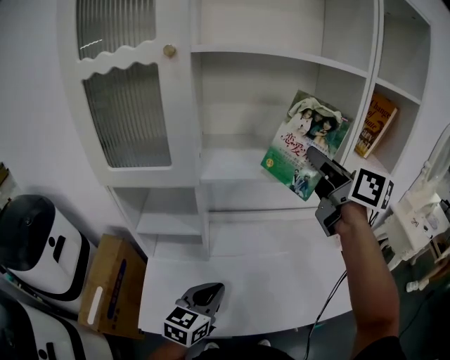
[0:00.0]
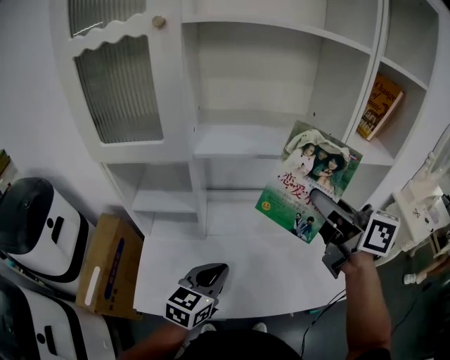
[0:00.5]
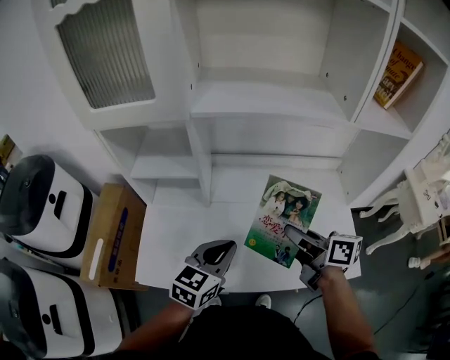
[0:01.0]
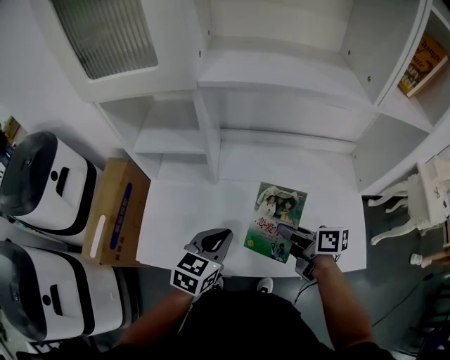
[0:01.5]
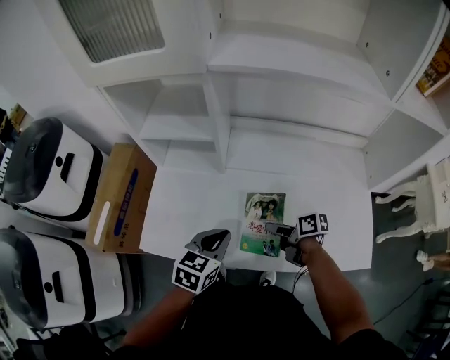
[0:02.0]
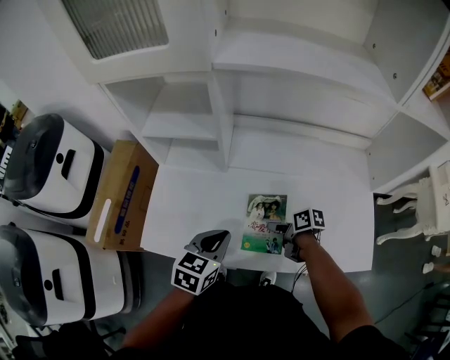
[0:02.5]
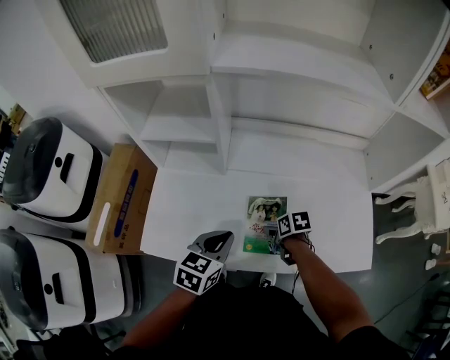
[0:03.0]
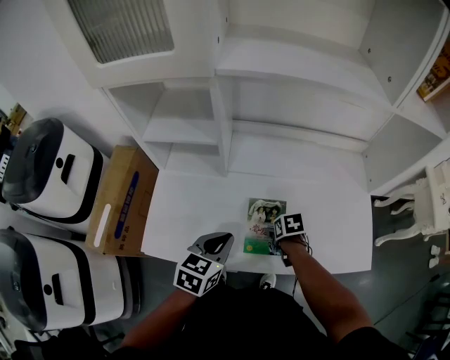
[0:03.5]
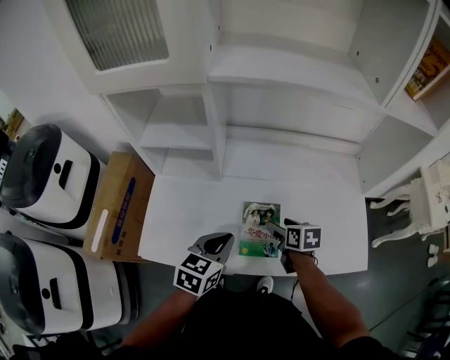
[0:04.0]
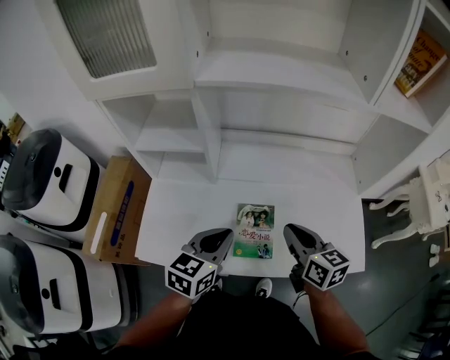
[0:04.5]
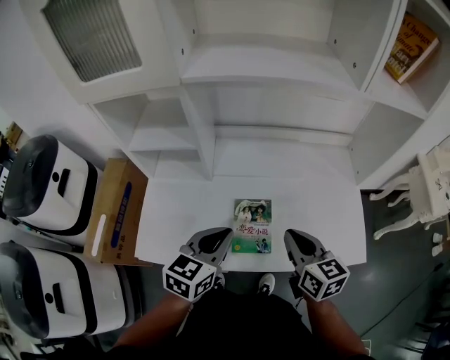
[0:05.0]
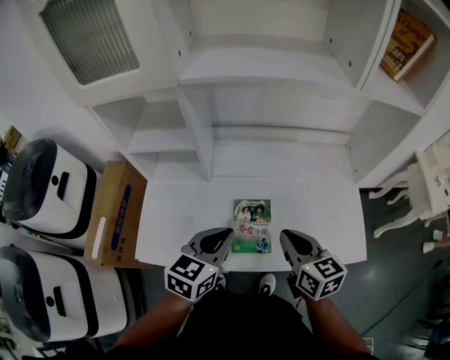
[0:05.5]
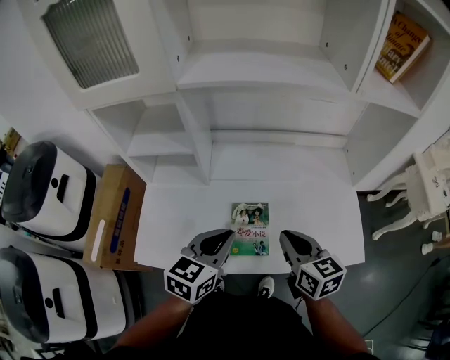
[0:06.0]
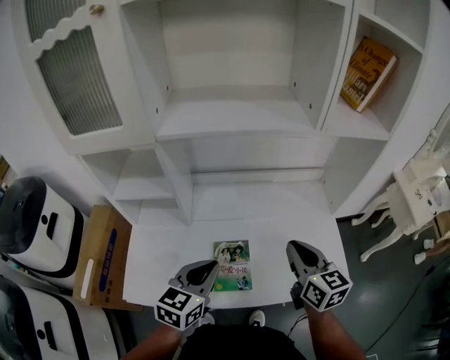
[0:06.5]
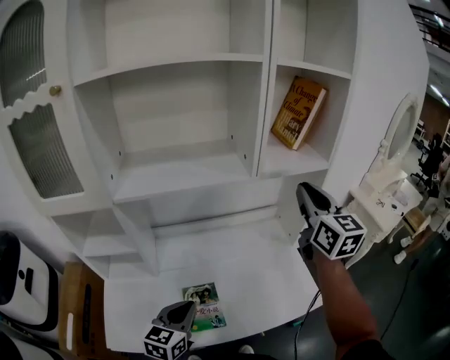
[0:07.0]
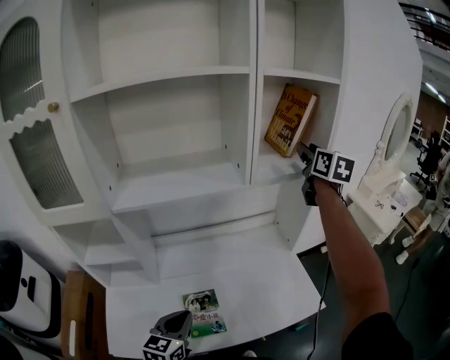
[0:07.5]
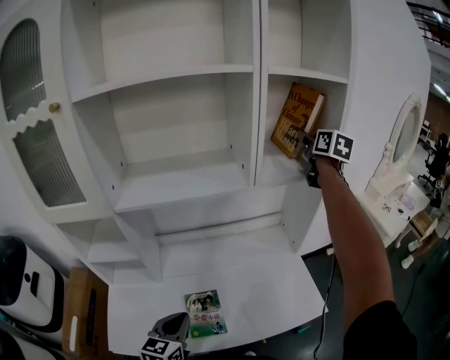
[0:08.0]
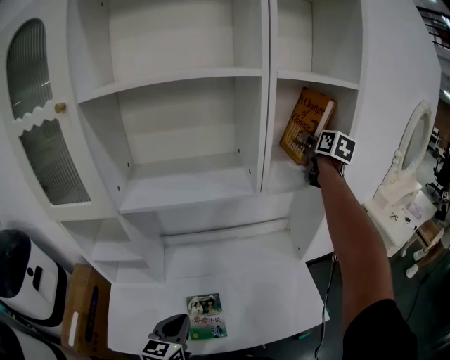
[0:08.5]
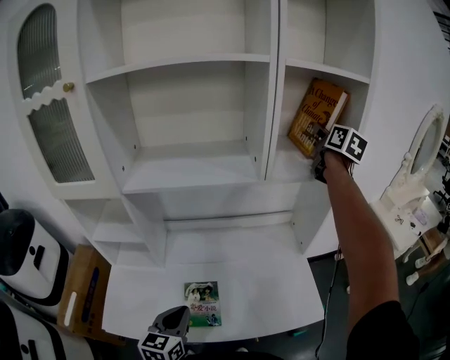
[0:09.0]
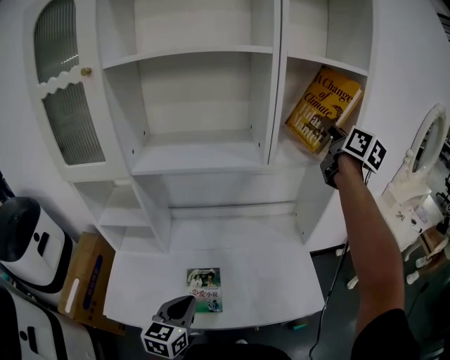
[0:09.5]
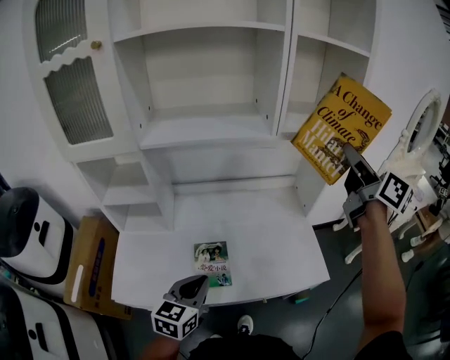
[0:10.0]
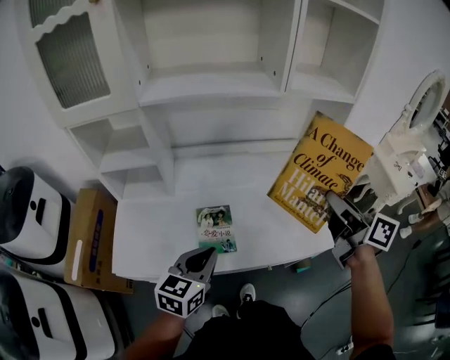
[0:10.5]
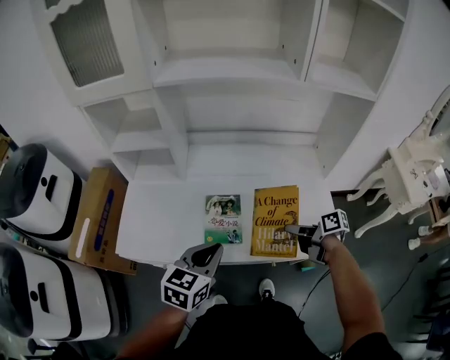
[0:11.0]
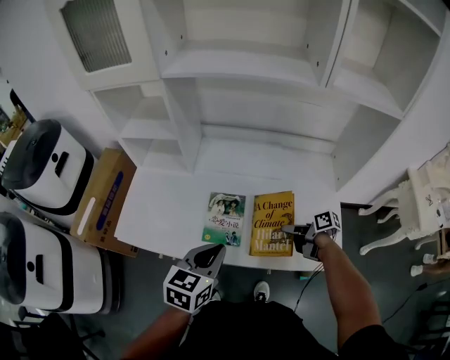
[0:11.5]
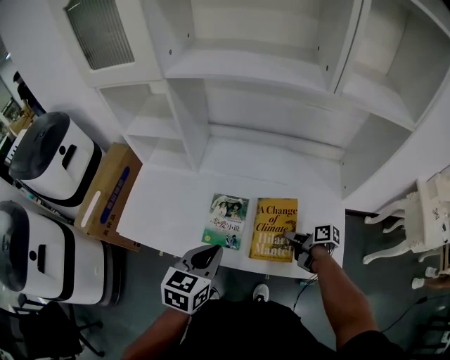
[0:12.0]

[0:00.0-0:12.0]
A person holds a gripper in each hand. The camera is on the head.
0:00.0 to 0:02.0: The left gripper moves downward, approximately 15 cm. Meanwhile the right gripper is displaced downward by some 60 cm, and tilts its fingers about 30 degrees downward.
0:02.0 to 0:04.0: The right gripper moves about 5 cm downward and comes back, turns by about 40 degrees, and opens.
0:04.0 to 0:06.0: The right gripper heads upward and backward, covering about 20 cm, turns by about 30 degrees, and closes. The left gripper goes approximately 5 cm upward.
0:06.0 to 0:08.0: The right gripper shifts roughly 60 cm forward, upward and to the right, turns by roughly 40 degrees, and opens.
0:08.0 to 0:10.0: The right gripper shifts approximately 25 cm backward, and turns by approximately 30 degrees; the left gripper is displaced backward by approximately 5 cm.
0:10.0 to 0:12.0: The left gripper moves downward, some 5 cm, while the right gripper heads downward, covering some 60 cm, and angles its fingers downward, by some 40 degrees.

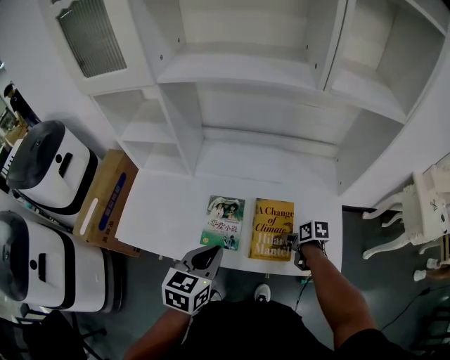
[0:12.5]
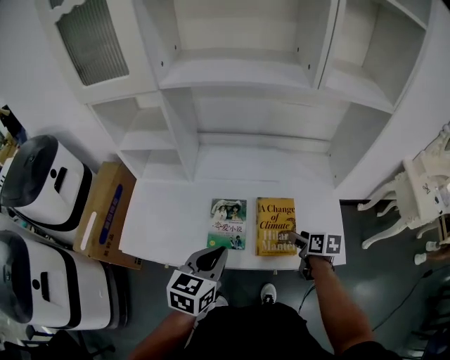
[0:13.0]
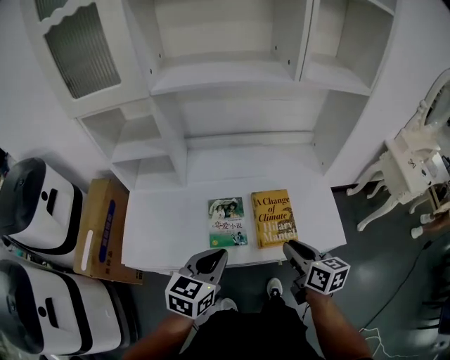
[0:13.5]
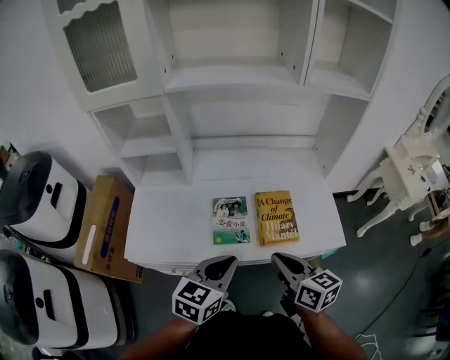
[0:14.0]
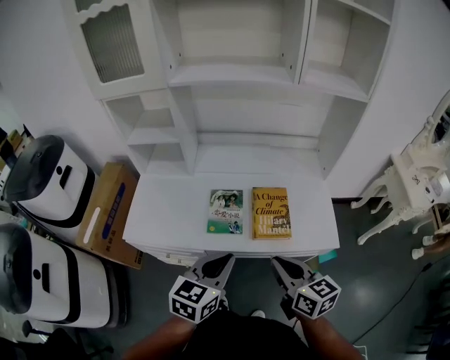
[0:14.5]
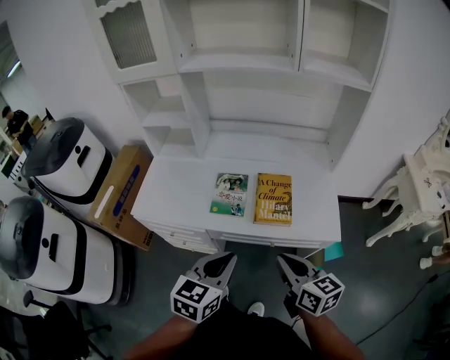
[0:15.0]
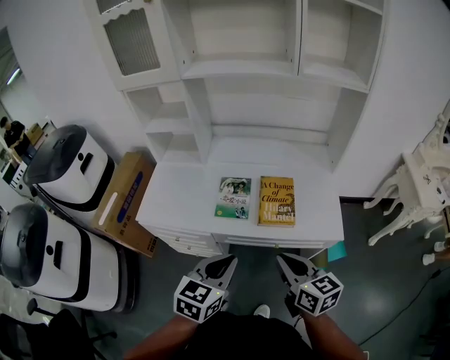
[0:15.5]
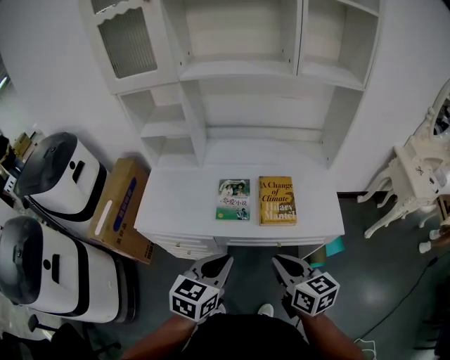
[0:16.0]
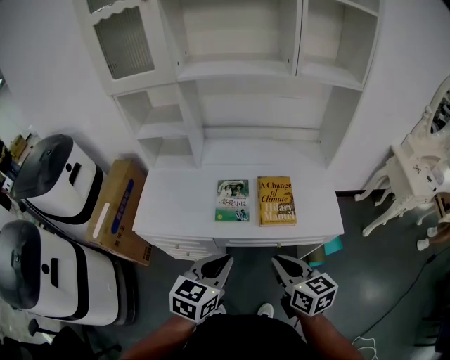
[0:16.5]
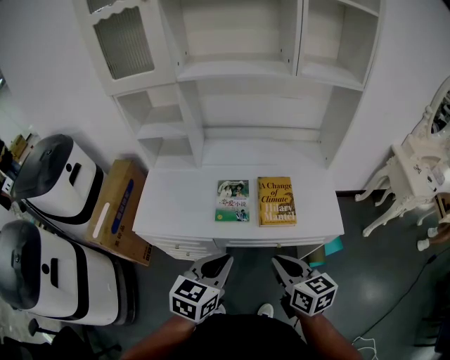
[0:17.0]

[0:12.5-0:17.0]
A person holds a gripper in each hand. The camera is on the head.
0:12.5 to 0:14.5: The left gripper heads backward, covering about 10 cm. The right gripper shifts about 35 cm upward, backward and to the left, tilts its fingers roughly 40 degrees upward, and closes up.
0:14.5 to 0:17.0: The two grippers go some 5 cm backward.

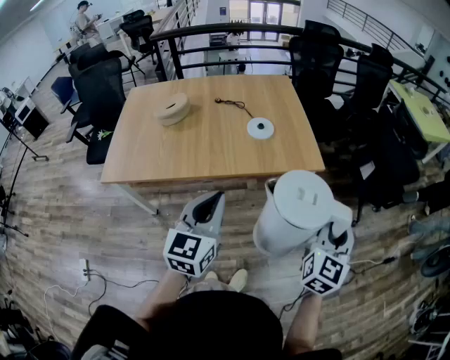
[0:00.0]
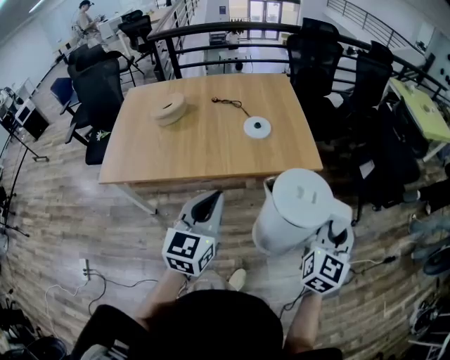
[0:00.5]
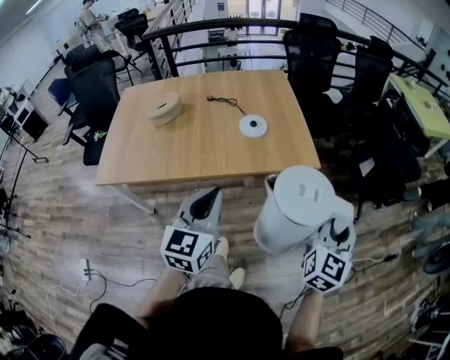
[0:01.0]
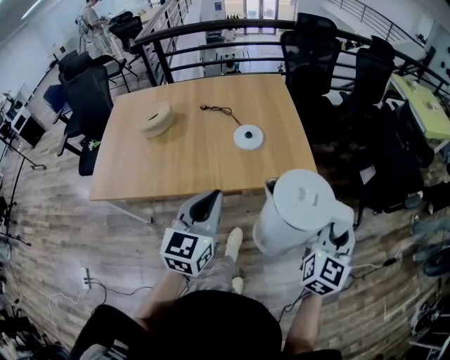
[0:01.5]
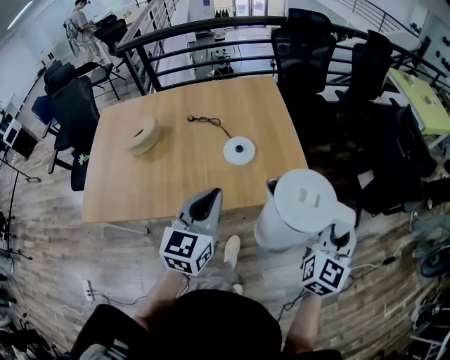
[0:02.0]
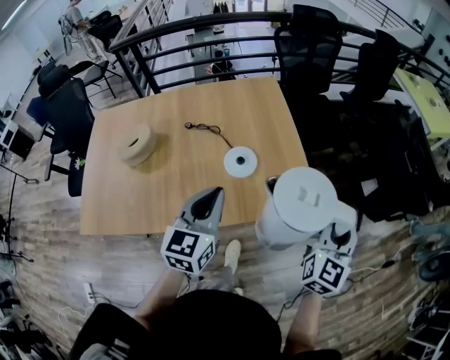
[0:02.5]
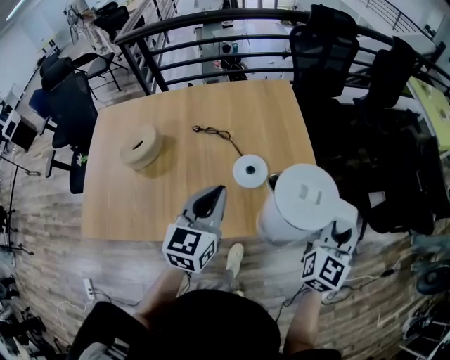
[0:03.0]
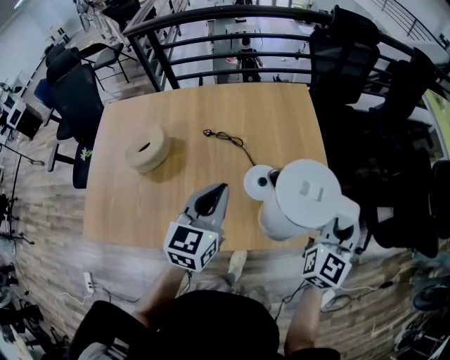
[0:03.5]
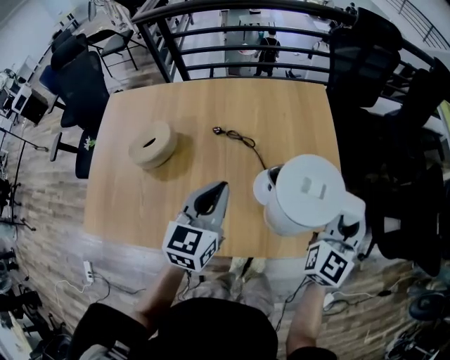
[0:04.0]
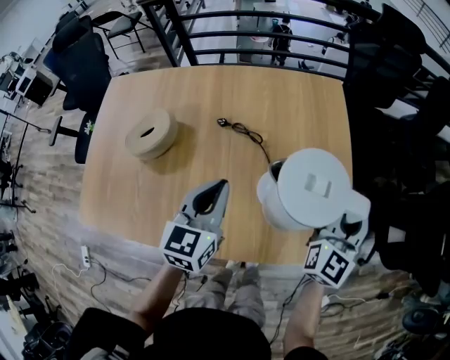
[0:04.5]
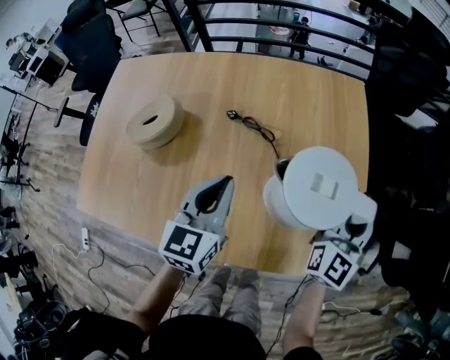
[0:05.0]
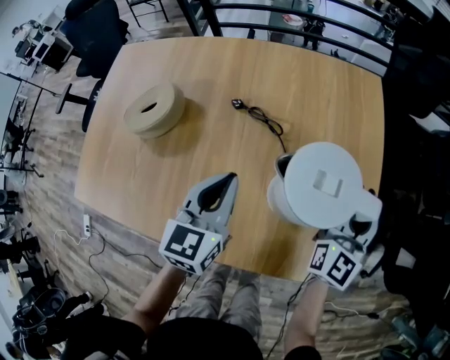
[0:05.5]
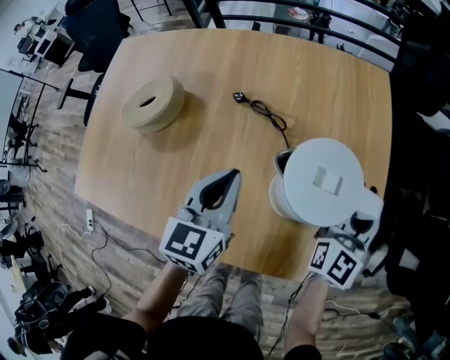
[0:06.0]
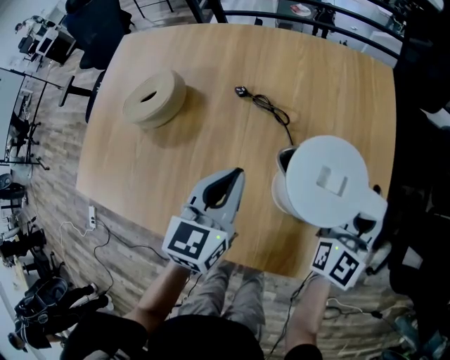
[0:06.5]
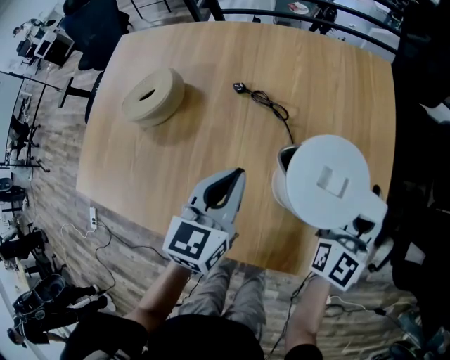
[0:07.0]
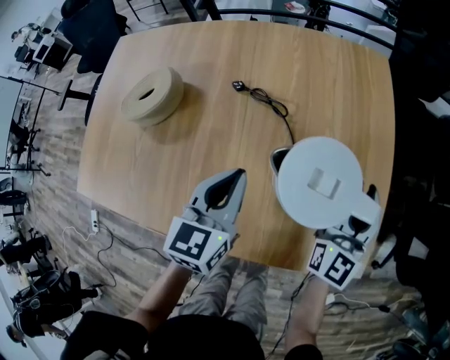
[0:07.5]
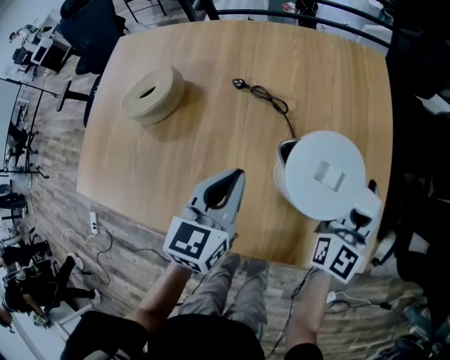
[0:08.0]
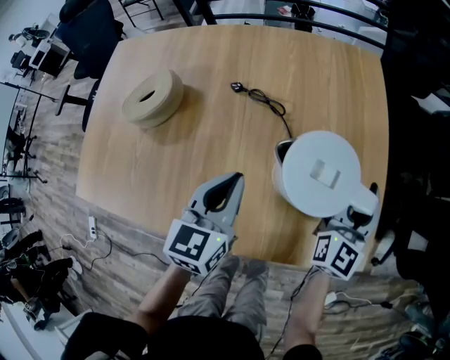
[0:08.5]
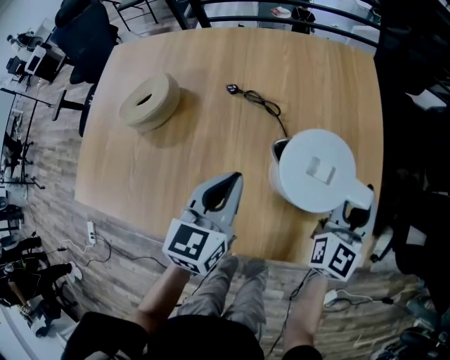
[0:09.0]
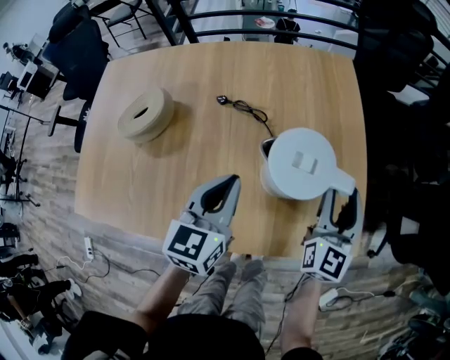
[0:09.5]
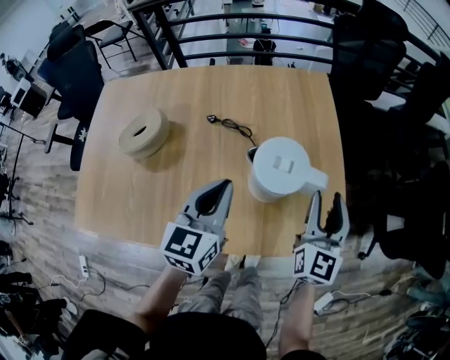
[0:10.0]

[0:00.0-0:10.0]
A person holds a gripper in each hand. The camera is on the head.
0:00.0 to 0:02.0: The grippers both shift forward by roughly 25 cm.
0:02.0 to 0:04.0: Both grippers move forward and to the left, about 30 cm.
0:04.0 to 0:06.0: The right gripper heads downward, forward and to the left, covering roughly 20 cm, while the left gripper travels downward and forward by roughly 15 cm.
0:06.0 to 0:08.0: The right gripper moves approximately 5 cm.
0:08.0 to 0:10.0: The left gripper heads upward, covering roughly 10 cm; the right gripper moves backward and upward, roughly 10 cm.
